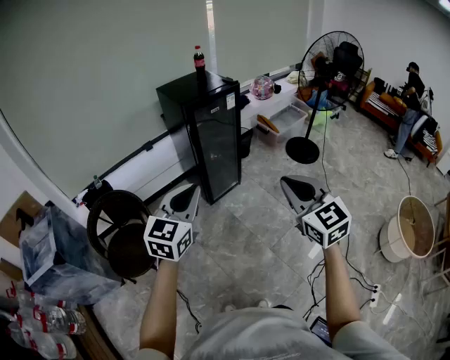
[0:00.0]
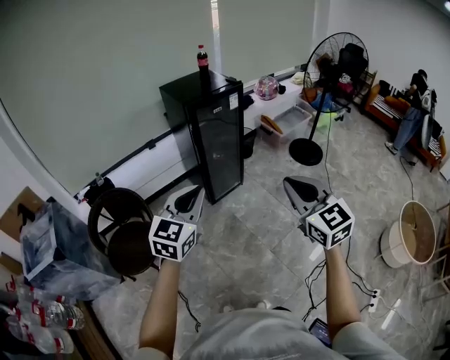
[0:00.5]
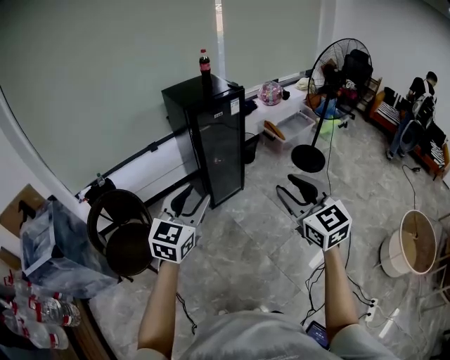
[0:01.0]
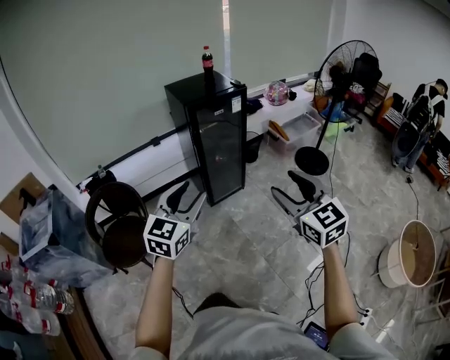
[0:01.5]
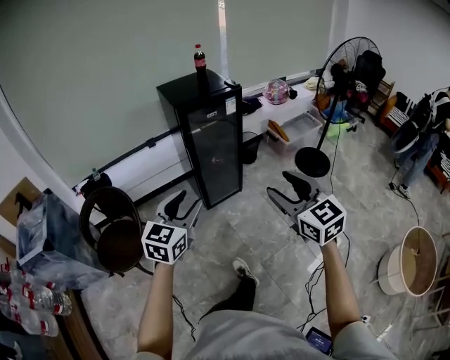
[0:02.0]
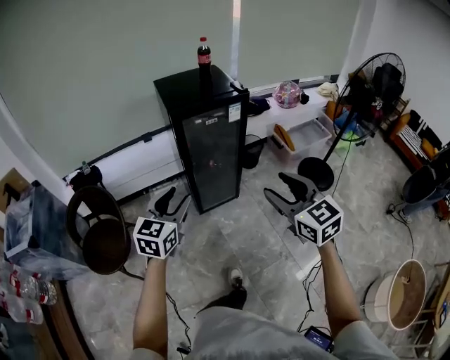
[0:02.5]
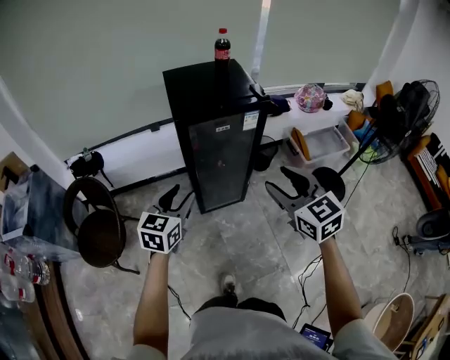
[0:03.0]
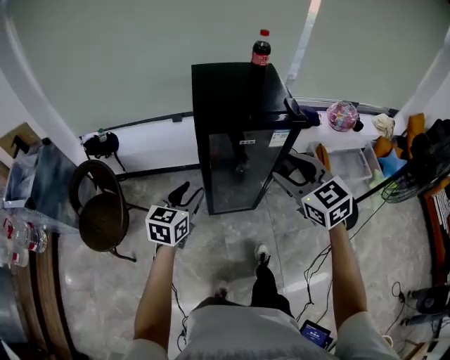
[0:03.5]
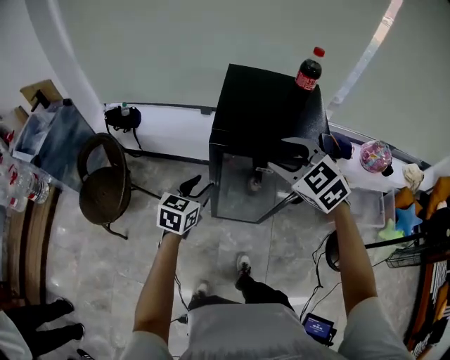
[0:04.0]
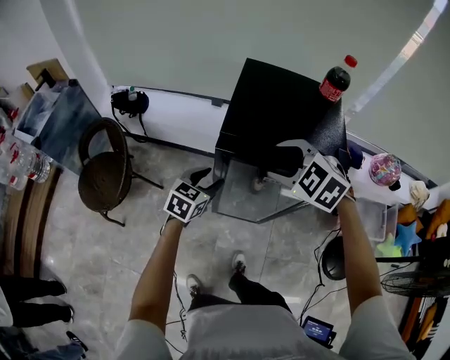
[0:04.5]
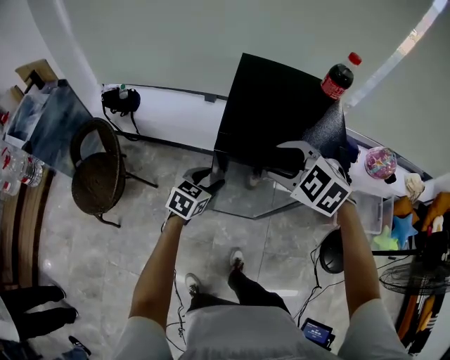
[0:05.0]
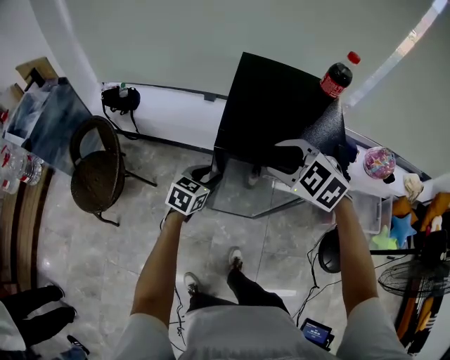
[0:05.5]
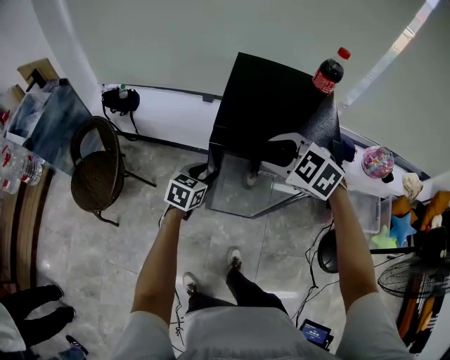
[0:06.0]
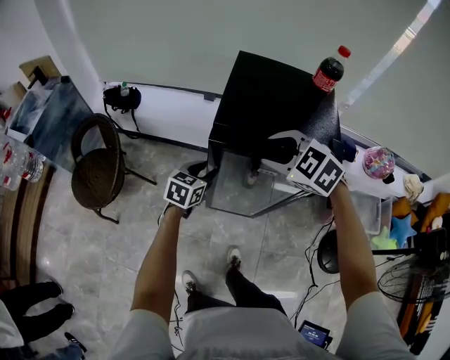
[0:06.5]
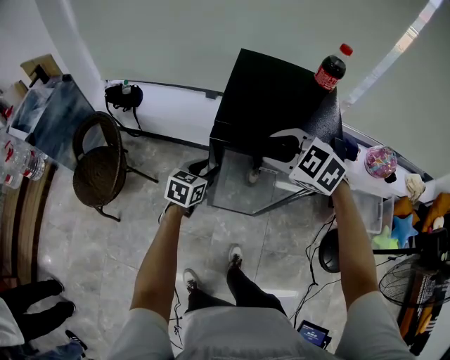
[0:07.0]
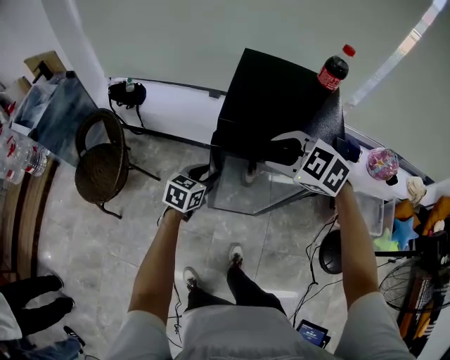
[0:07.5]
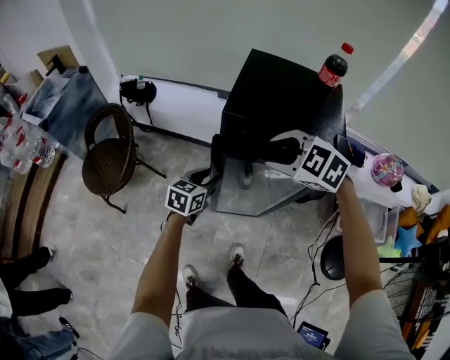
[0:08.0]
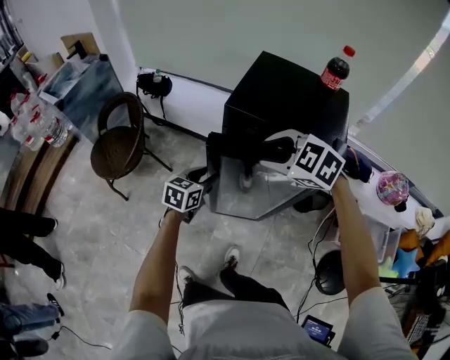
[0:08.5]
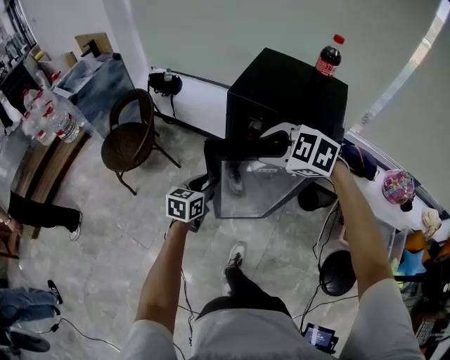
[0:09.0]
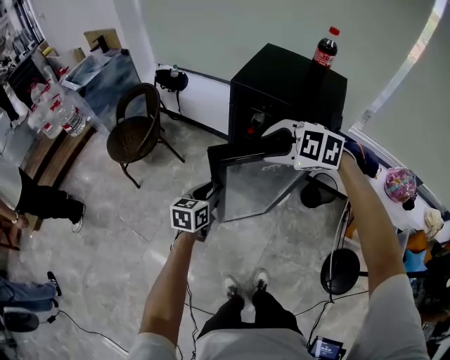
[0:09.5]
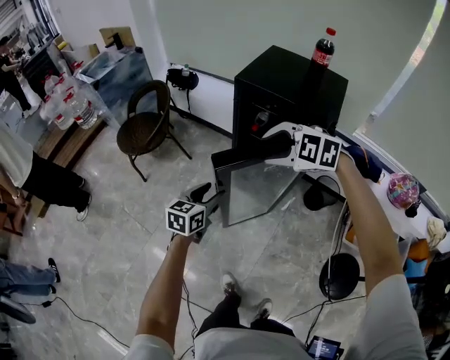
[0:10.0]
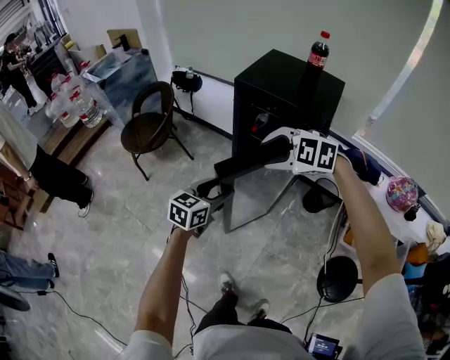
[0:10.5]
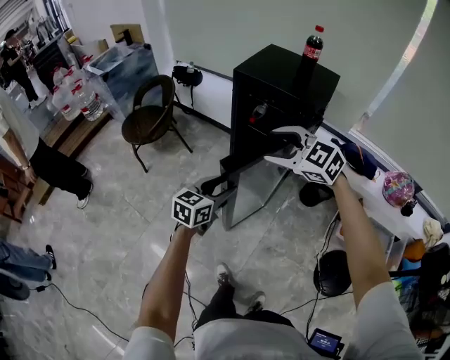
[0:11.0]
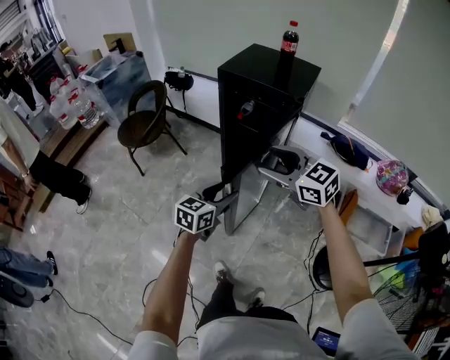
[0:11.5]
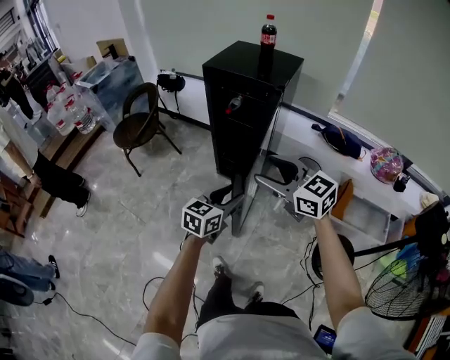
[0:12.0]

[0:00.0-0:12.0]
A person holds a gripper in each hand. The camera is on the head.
0:00.0 to 0:02.0: The right gripper shifts about 15 cm forward and to the right, and opens up. The left gripper heads to the right, forward and downward, covering roughly 15 cm, and opens up.
0:02.0 to 0:04.0: Both grippers are carried some 50 cm. The left gripper changes its angle by roughly 40 degrees; the right gripper turns by some 60 degrees.
0:04.0 to 0:06.0: The left gripper heads downward and forward, covering about 10 cm. The right gripper travels downward by about 5 cm.
0:06.0 to 0:08.0: The left gripper moves backward, some 5 cm.
0:08.0 to 0:10.0: Both grippers move backward, some 20 cm. The left gripper turns by roughly 20 degrees. The right gripper changes its angle by roughly 30 degrees.
0:10.0 to 0:12.0: The right gripper heads backward, covering approximately 25 cm, and angles its fingers upward, by approximately 40 degrees, while the left gripper travels backward and to the right by roughly 25 cm.

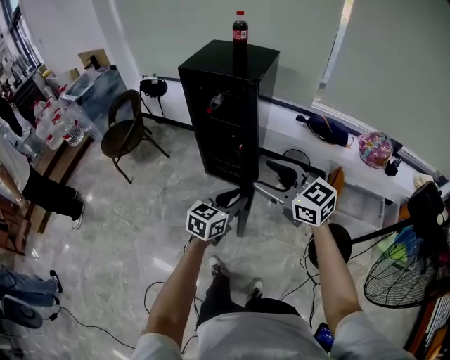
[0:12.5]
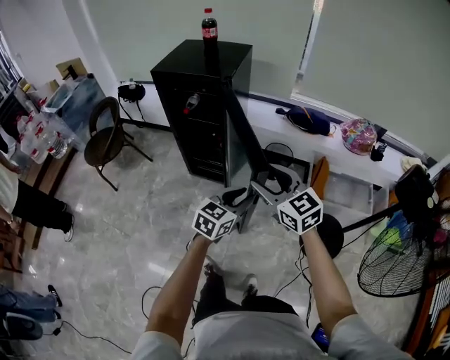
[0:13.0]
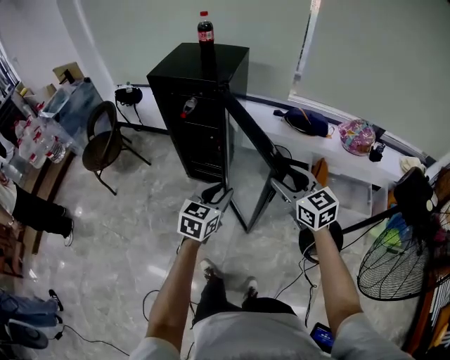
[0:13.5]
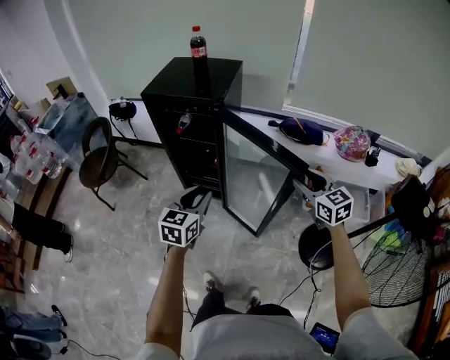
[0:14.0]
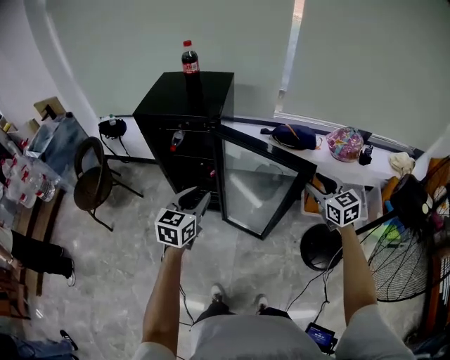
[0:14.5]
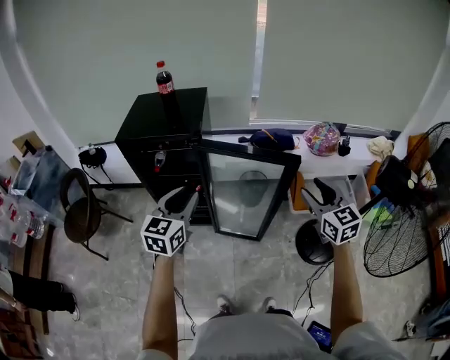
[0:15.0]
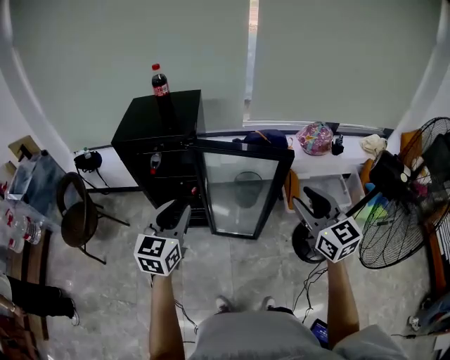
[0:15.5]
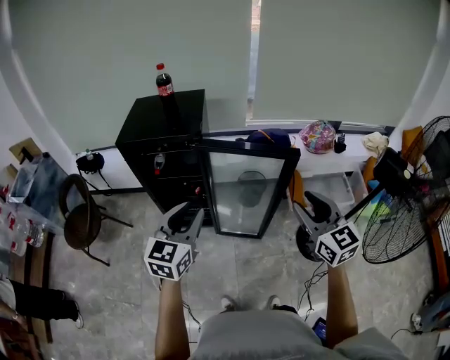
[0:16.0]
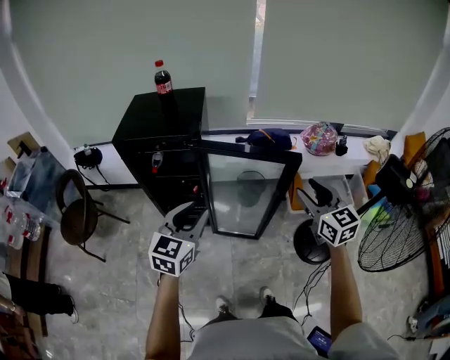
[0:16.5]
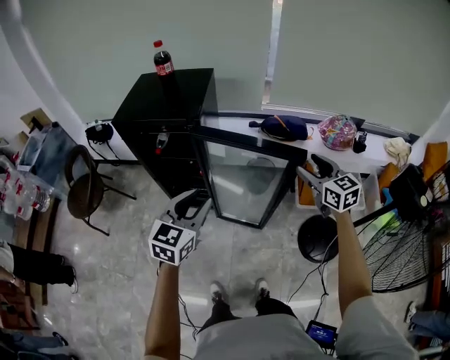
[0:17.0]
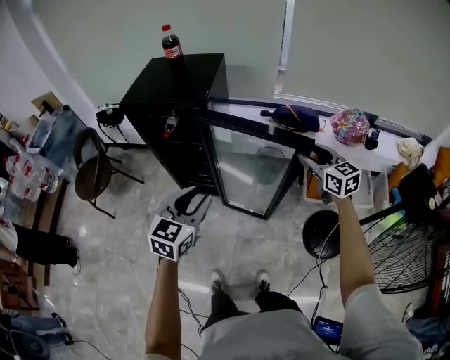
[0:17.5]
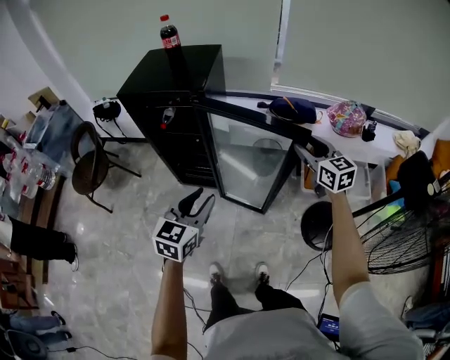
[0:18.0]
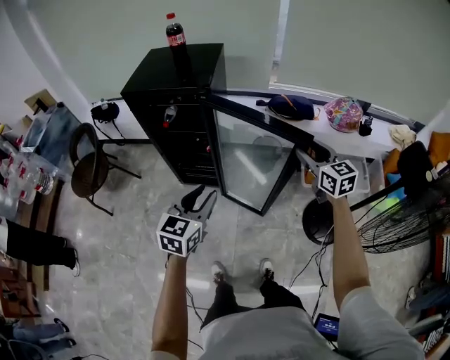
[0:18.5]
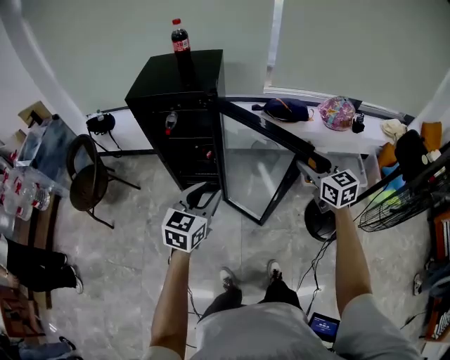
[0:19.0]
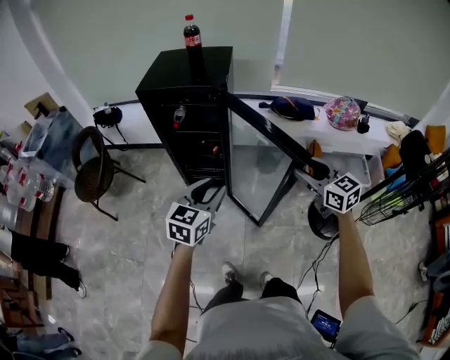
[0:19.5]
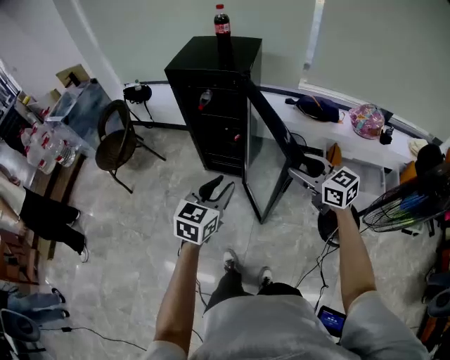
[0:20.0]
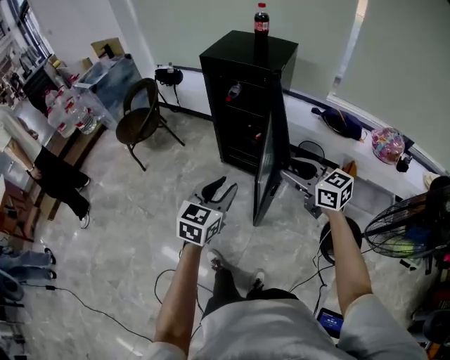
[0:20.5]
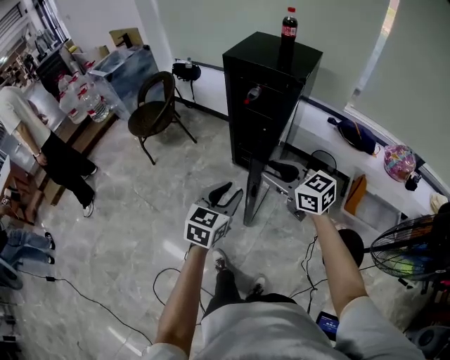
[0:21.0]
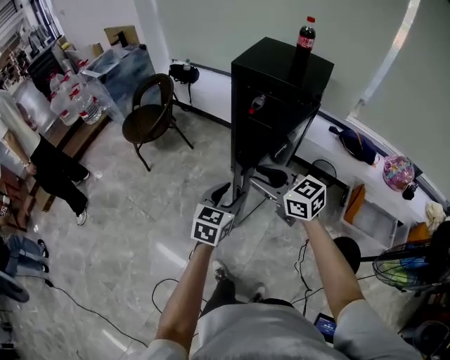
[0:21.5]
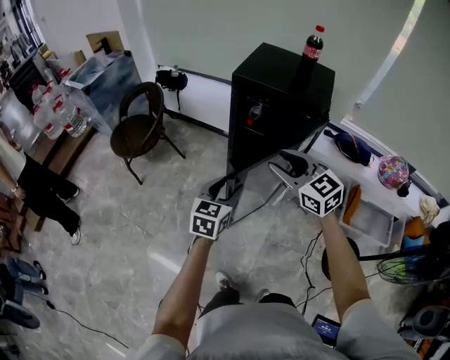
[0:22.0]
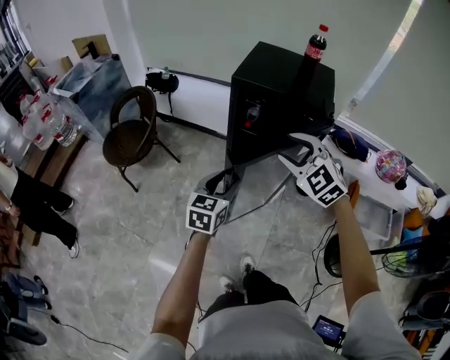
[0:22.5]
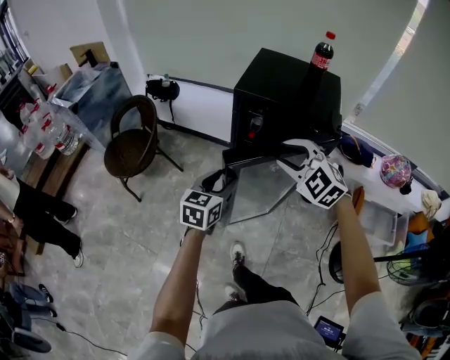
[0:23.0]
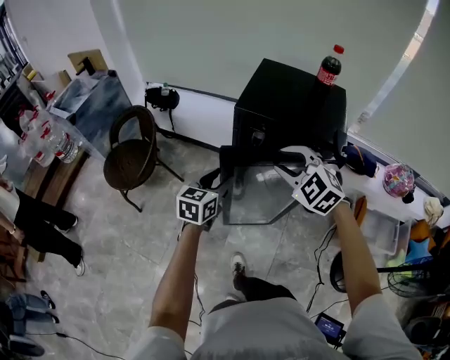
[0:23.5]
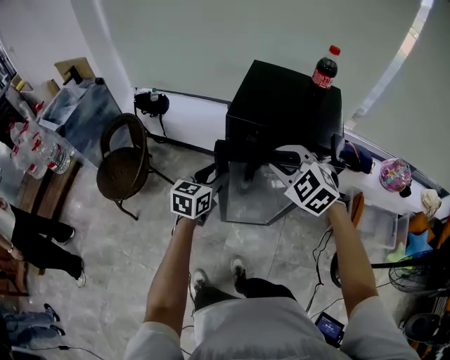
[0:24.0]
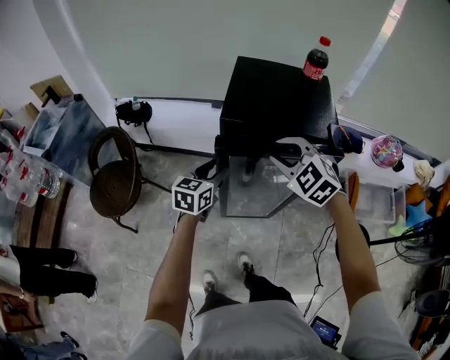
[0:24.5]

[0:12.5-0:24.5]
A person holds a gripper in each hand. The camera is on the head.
0:12.5 to 0:14.5: The right gripper moves to the right and forward, approximately 30 cm, and turns by approximately 40 degrees. Meanwhile the left gripper goes roughly 15 cm forward and upward.
0:14.5 to 0:16.5: The right gripper heads upward and backward, covering some 10 cm. The left gripper shifts about 5 cm upward.
0:16.5 to 0:18.5: The left gripper travels downward by about 10 cm; the right gripper is displaced downward and forward by some 10 cm.
0:18.5 to 0:20.5: The left gripper moves approximately 15 cm. Meanwhile the right gripper changes place by some 25 cm, and turns by roughly 40 degrees.
0:20.5 to 0:22.5: Both grippers move forward and to the left, some 30 cm. The right gripper rotates around the line of its fingers by some 50 degrees, counterclockwise from behind.
0:22.5 to 0:24.5: The grippers both shift forward by some 20 cm.

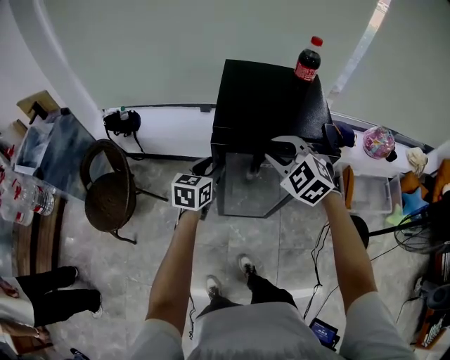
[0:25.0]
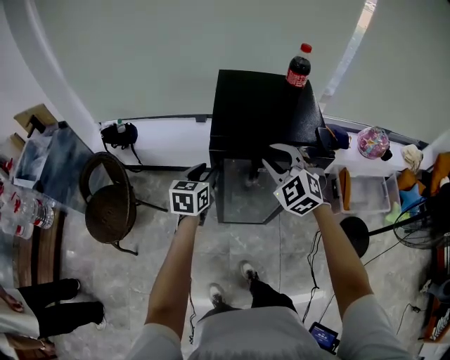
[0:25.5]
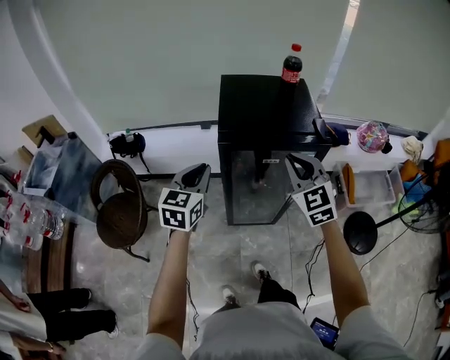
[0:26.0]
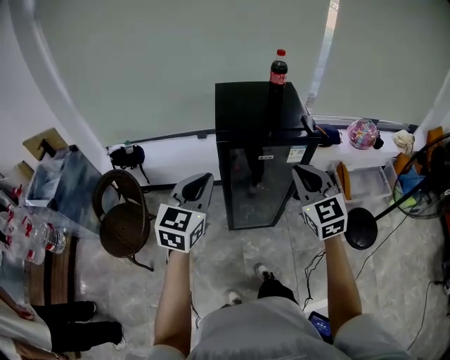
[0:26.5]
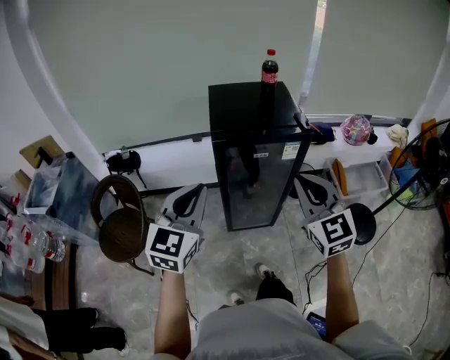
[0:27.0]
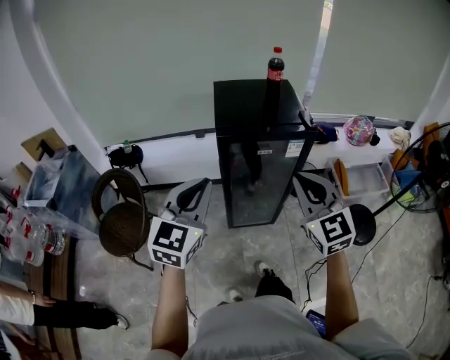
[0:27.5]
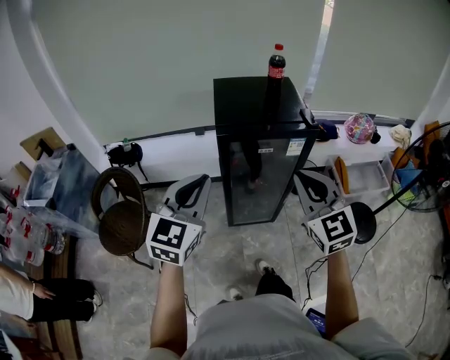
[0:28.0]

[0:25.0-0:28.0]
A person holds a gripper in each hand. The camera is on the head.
0:25.0 to 0:26.5: The right gripper heads backward and upward, covering roughly 20 cm, changes its angle by some 40 degrees, and closes. Meanwhile the left gripper travels upward and backward by about 25 cm, rotates approximately 30 degrees, and closes its fingers.
0:26.5 to 0:28.0: The grippers both shift backward by approximately 5 cm.
